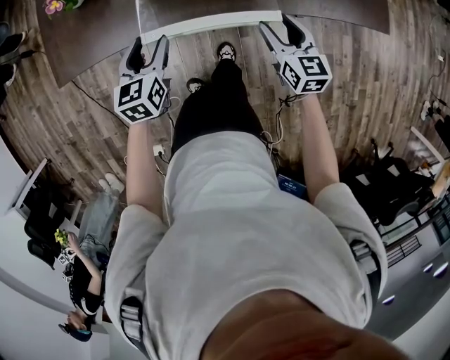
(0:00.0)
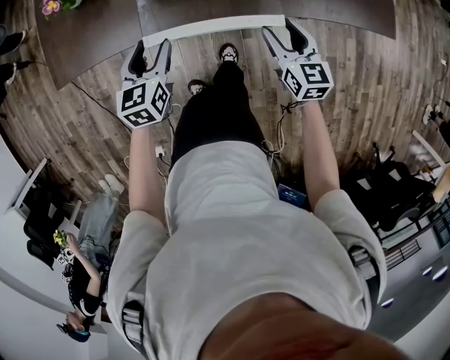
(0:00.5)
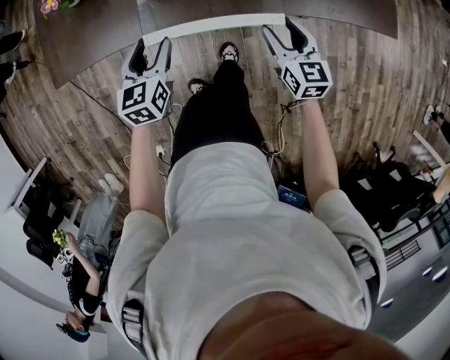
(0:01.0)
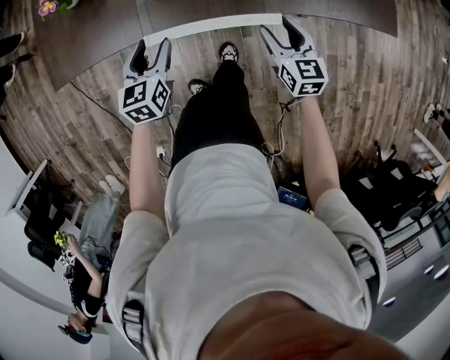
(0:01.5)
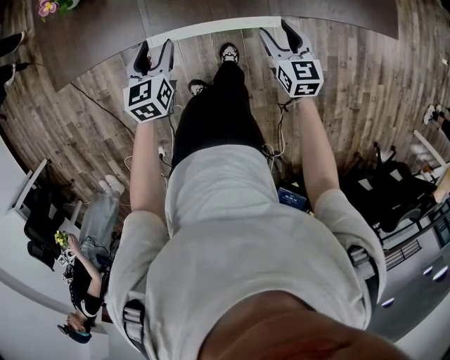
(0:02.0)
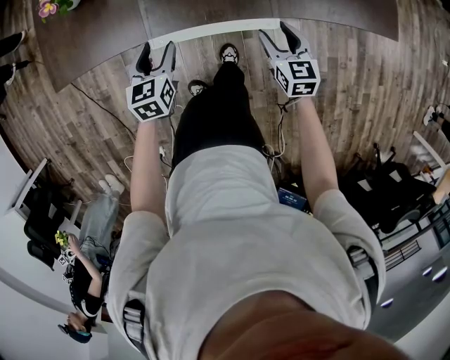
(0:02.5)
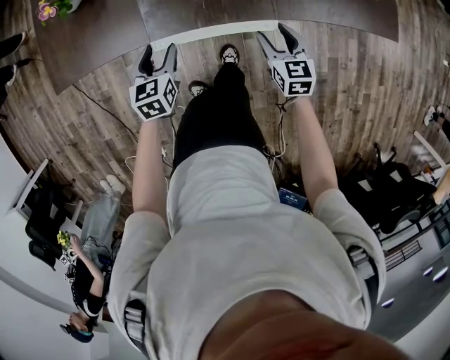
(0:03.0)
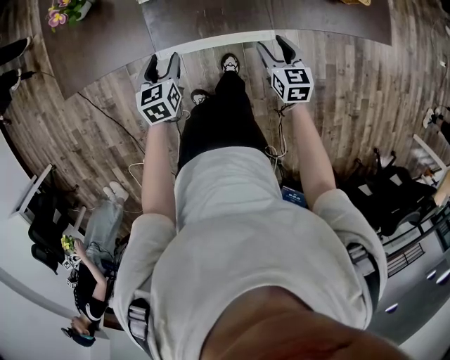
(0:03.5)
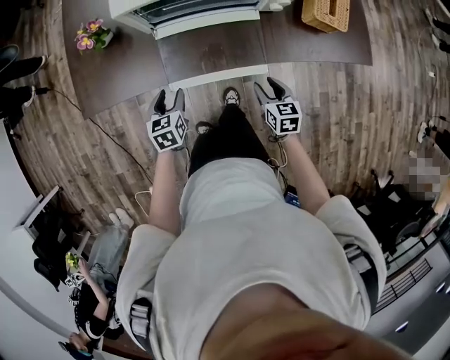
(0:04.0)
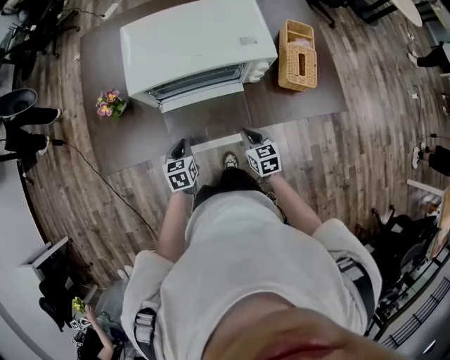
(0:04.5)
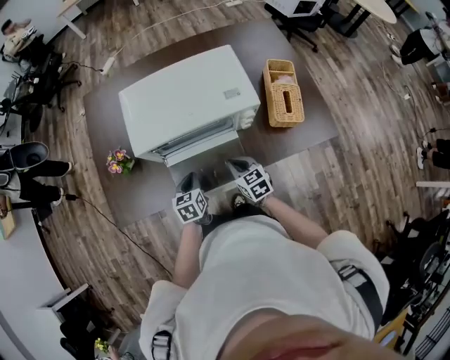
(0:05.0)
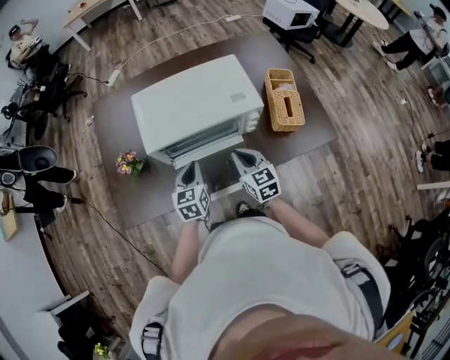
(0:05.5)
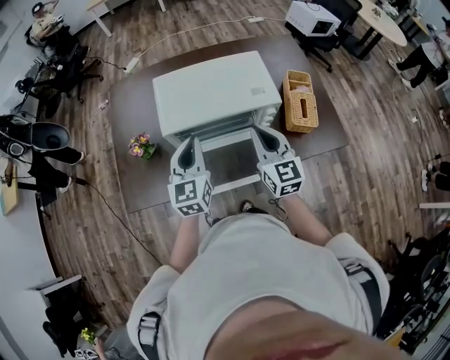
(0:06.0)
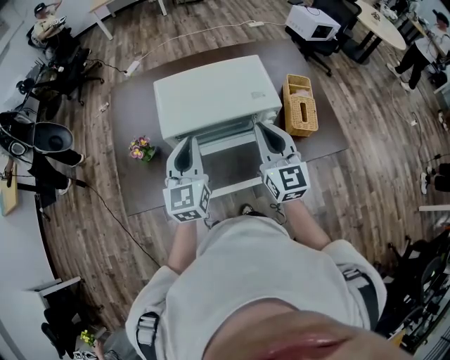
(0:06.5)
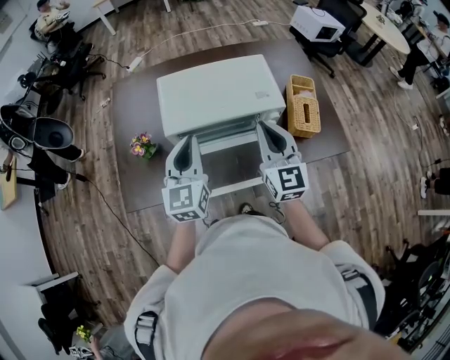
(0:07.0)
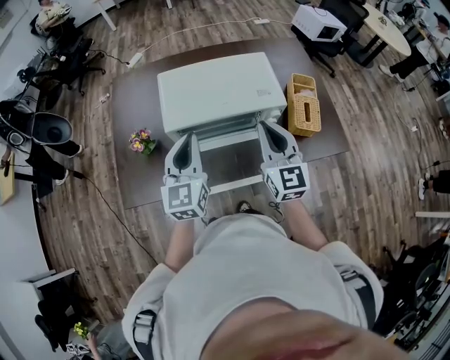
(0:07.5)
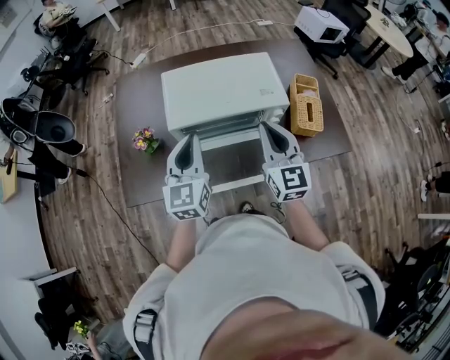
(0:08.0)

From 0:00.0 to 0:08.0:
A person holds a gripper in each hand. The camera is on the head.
From 0:00.0 to 0:02.0: The two grippers go some 5 cm downward.
From 0:02.0 to 0:04.0: The grippers make only small movements.
From 0:04.0 to 0:06.0: Both grippers move upward, approximately 35 cm. The right gripper tilts its fingers some 40 degrees upward, and closes, while the left gripper points its fingers roughly 40 degrees further upward, and closes its fingers.
From 0:06.0 to 0:08.0: The grippers make only small movements.

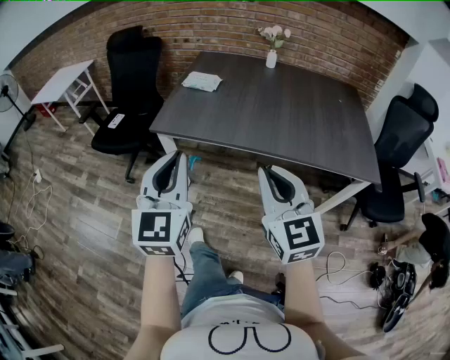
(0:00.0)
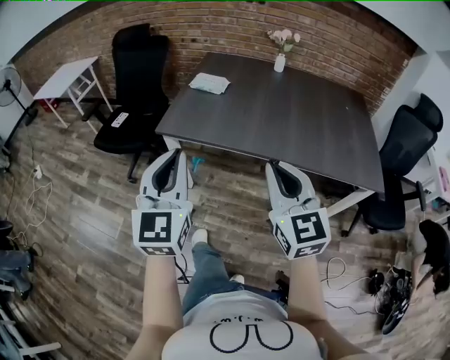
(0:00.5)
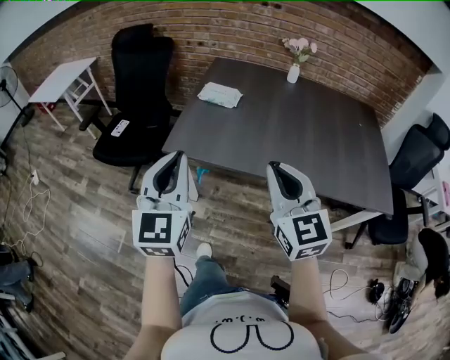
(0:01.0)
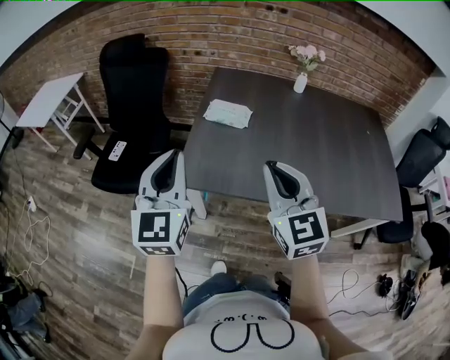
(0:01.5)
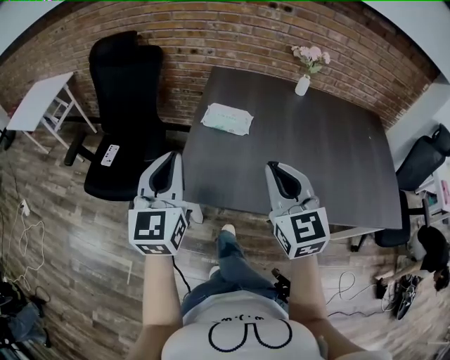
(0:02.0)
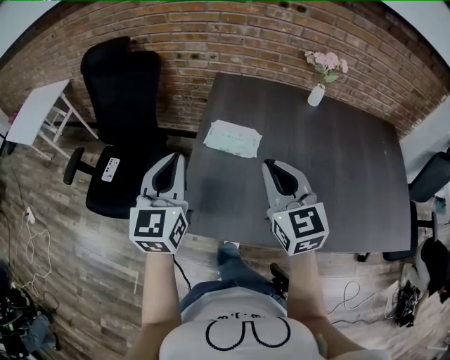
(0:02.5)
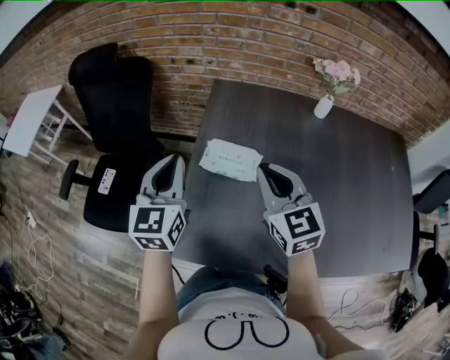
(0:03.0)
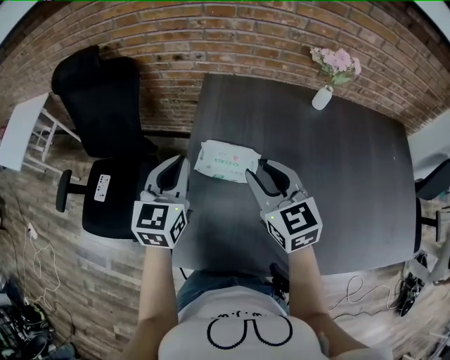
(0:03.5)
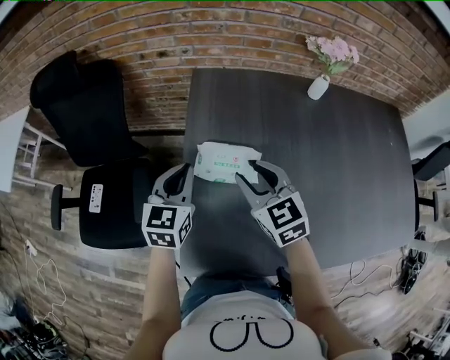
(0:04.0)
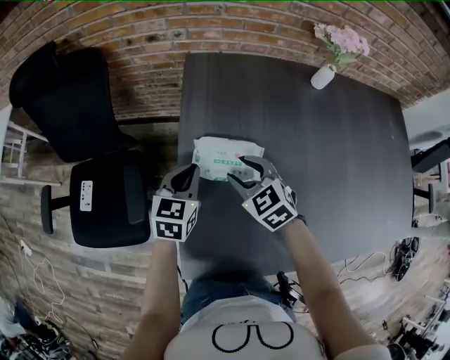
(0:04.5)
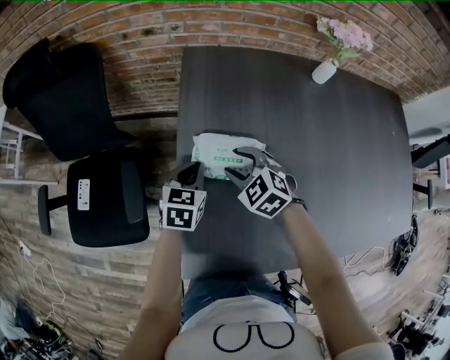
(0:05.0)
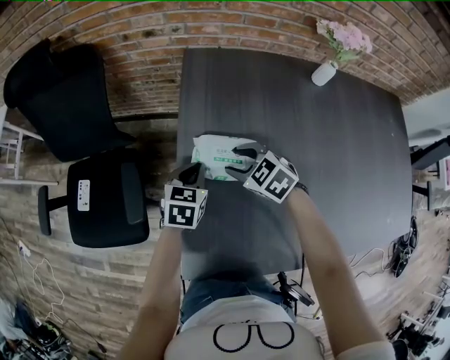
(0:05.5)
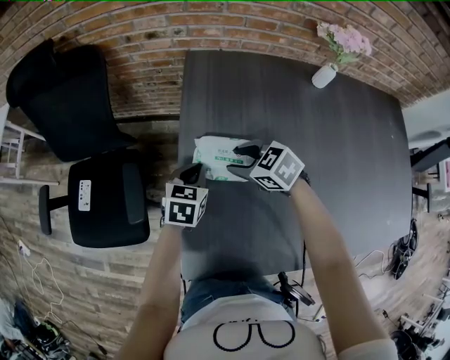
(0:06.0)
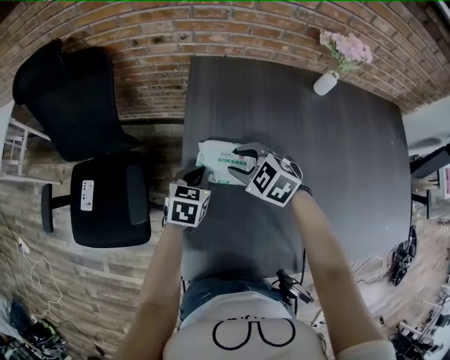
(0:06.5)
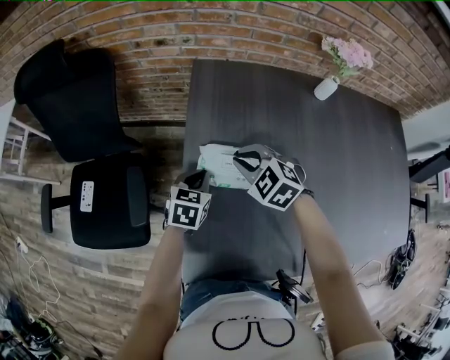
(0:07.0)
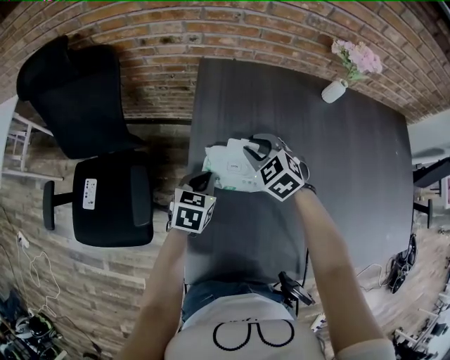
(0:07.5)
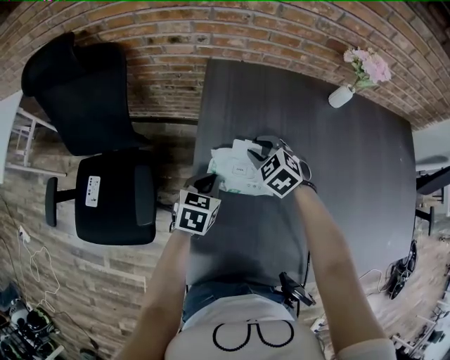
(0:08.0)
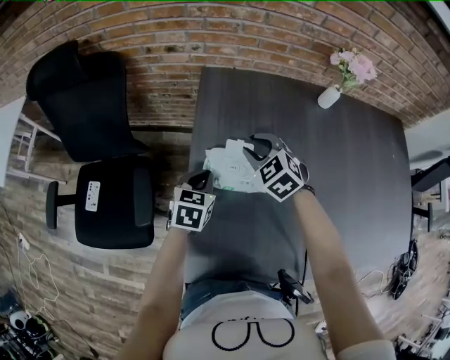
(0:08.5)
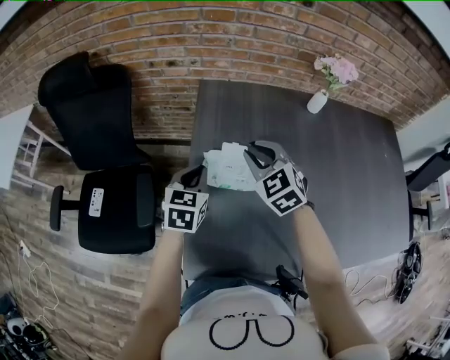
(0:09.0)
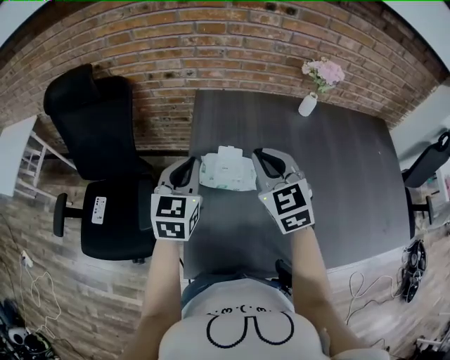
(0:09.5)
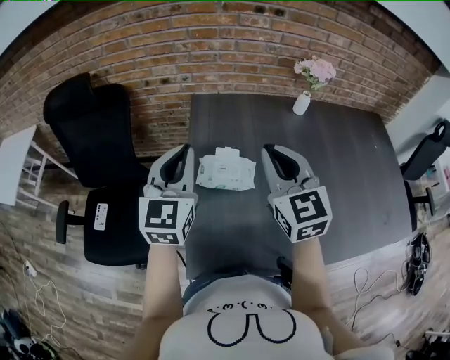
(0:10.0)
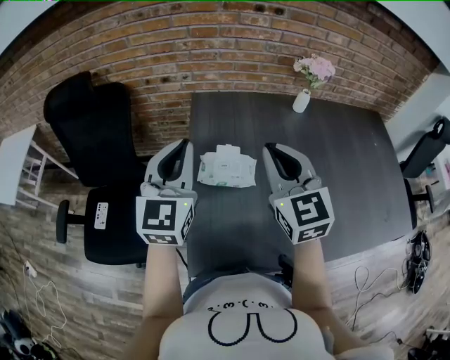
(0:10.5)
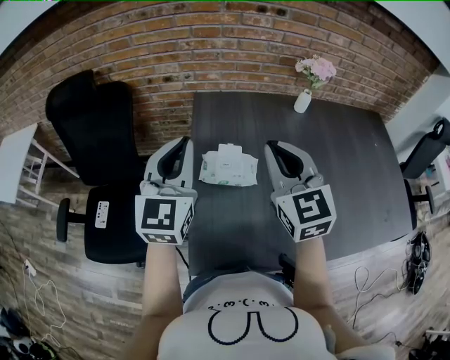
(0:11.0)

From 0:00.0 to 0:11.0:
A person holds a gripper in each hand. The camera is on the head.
From 0:00.0 to 0:02.0: The pair of grippers is taken forward and to the left, roughly 40 cm.
From 0:02.0 to 0:03.5: The two grippers go roughly 30 cm forward. The right gripper opens its fingers.
From 0:03.5 to 0:05.5: The left gripper heads downward, covering some 20 cm, and swivels roughly 30 degrees, while the right gripper travels downward and forward by some 20 cm, and angles its fingers downward, by approximately 30 degrees.
From 0:05.5 to 0:07.5: The right gripper shifts roughly 5 cm forward, and closes.
From 0:07.5 to 0:09.0: The left gripper heads upward, covering roughly 10 cm. The right gripper travels upward and backward by about 15 cm.
From 0:09.0 to 0:11.0: The left gripper goes roughly 20 cm upward, and tips its fingers upward by about 30 degrees, while the right gripper is displaced upward and backward by about 20 cm, and rotates some 30 degrees.

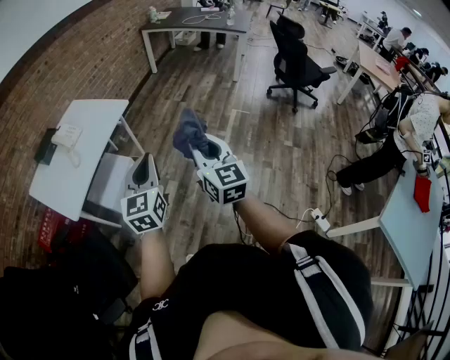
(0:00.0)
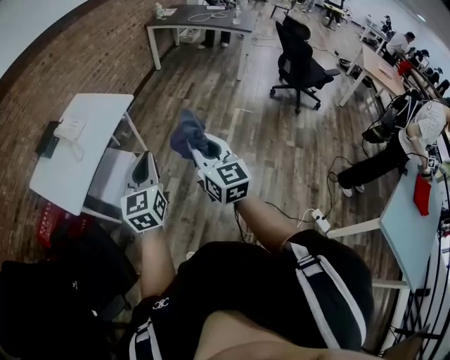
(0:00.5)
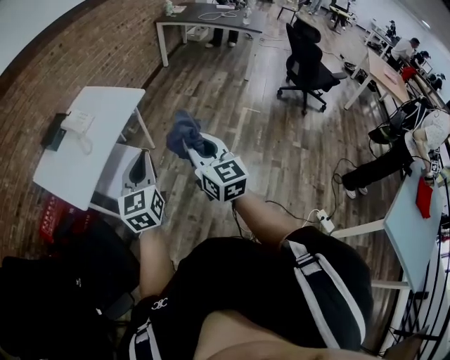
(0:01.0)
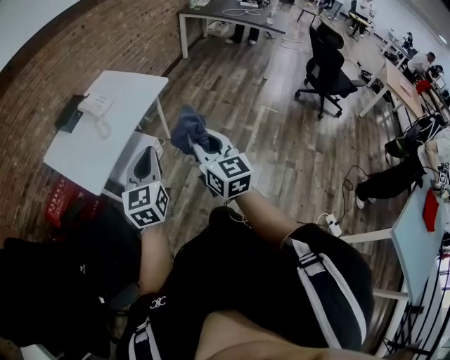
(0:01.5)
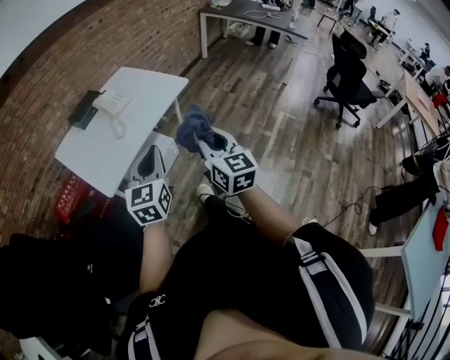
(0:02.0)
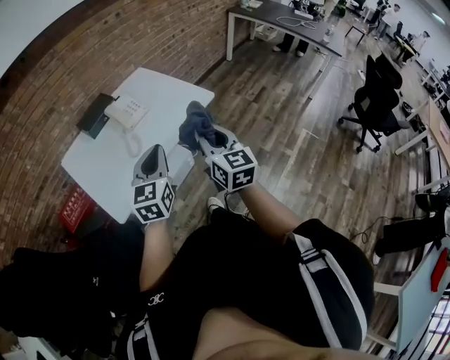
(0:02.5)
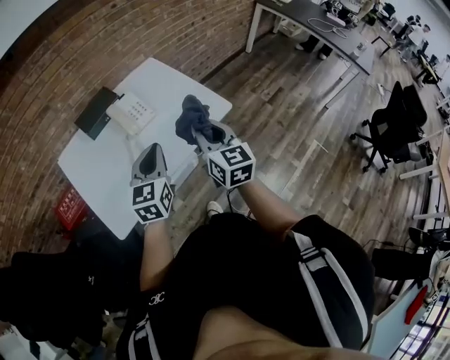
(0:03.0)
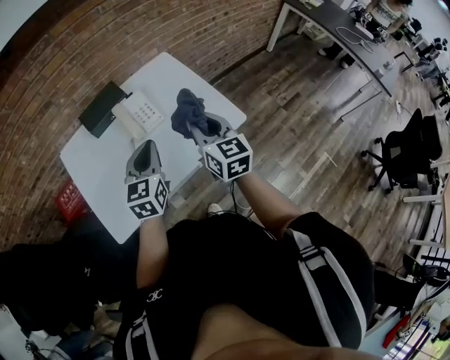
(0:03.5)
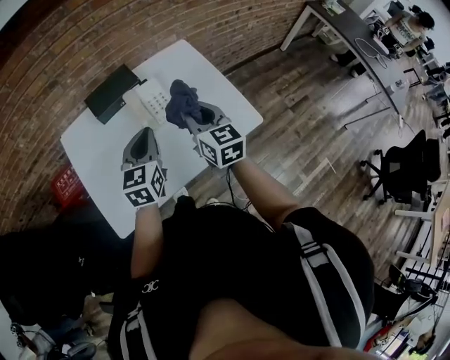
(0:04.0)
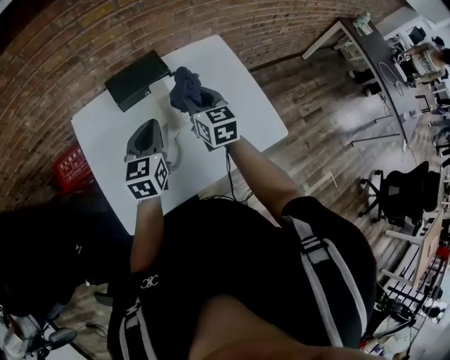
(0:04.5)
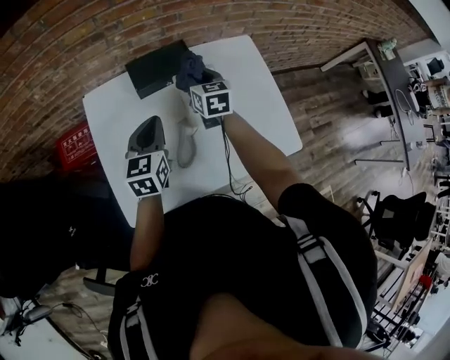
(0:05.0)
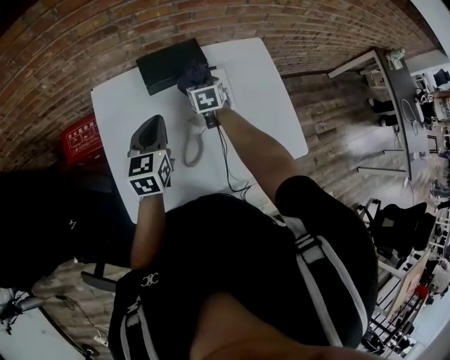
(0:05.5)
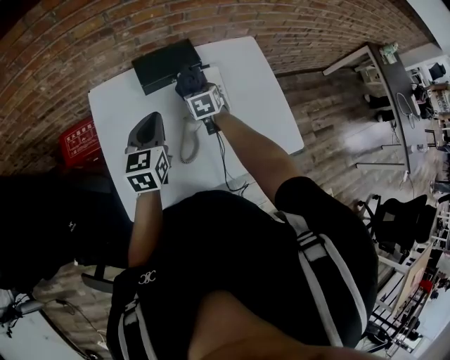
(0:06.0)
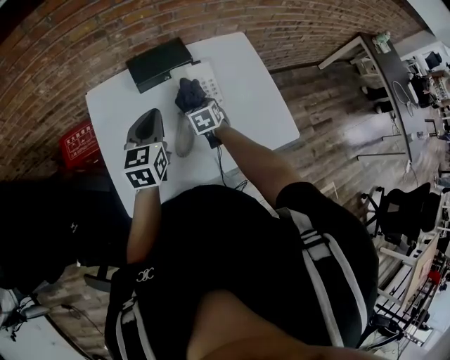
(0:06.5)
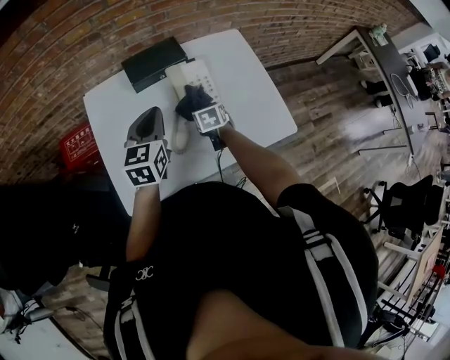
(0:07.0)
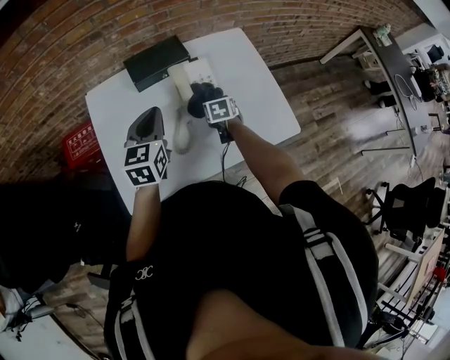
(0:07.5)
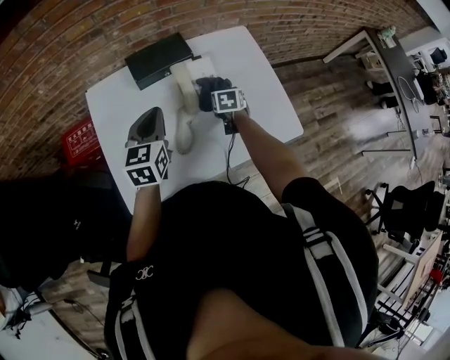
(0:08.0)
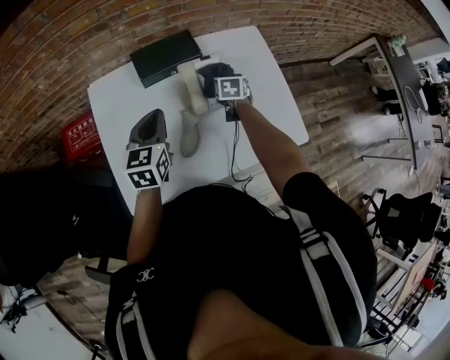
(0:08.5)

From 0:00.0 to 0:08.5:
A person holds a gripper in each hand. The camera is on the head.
From 0:00.0 to 0:02.0: The right gripper heads to the left and forward, covering about 25 cm; the left gripper is displaced to the left by about 25 cm.
From 0:02.0 to 0:04.0: The pair of grippers is taken some 50 cm. The left gripper turns by approximately 30 degrees. Meanwhile the right gripper rotates approximately 30 degrees.
From 0:04.0 to 0:06.5: The left gripper is displaced to the left by roughly 15 cm, while the right gripper shifts approximately 30 cm downward, to the left and forward, and tilts its fingers about 40 degrees downward.
From 0:06.5 to 0:08.5: The right gripper goes some 15 cm forward and to the right.
